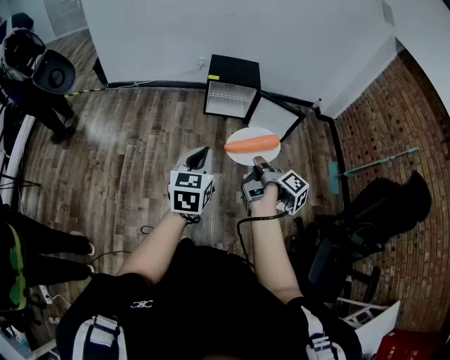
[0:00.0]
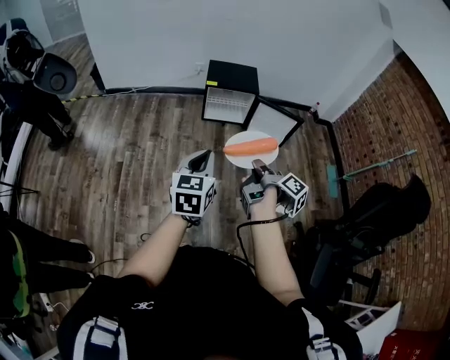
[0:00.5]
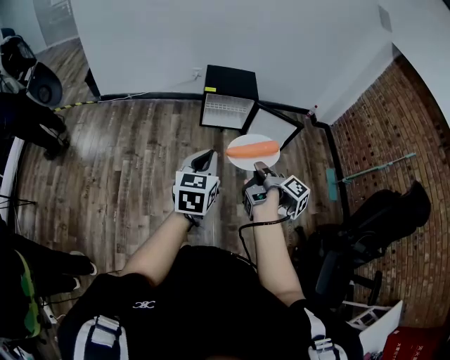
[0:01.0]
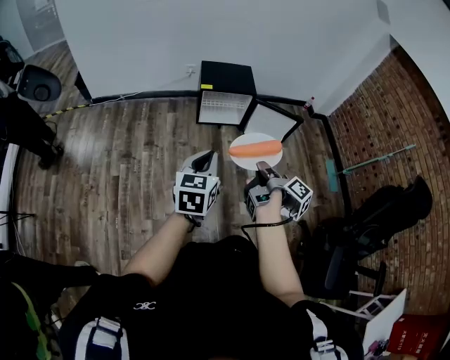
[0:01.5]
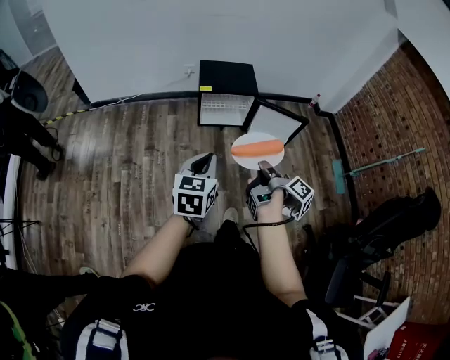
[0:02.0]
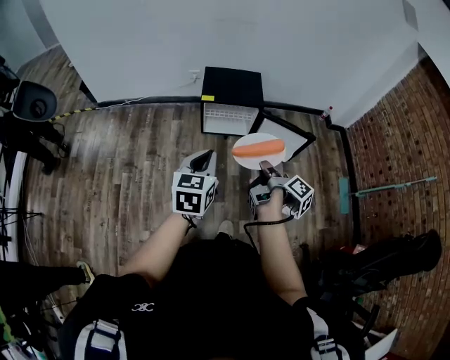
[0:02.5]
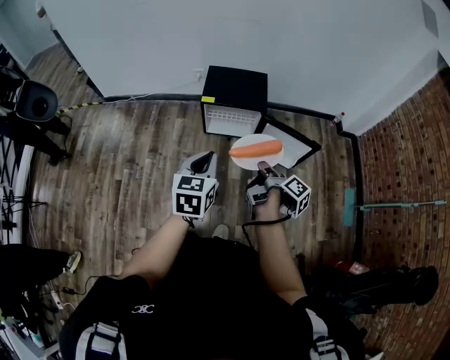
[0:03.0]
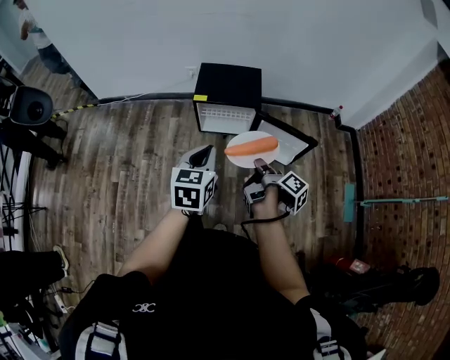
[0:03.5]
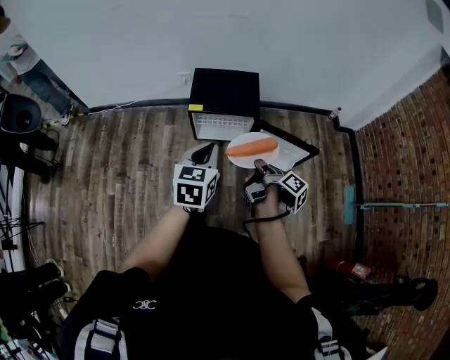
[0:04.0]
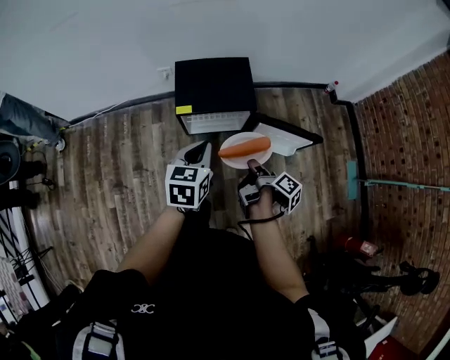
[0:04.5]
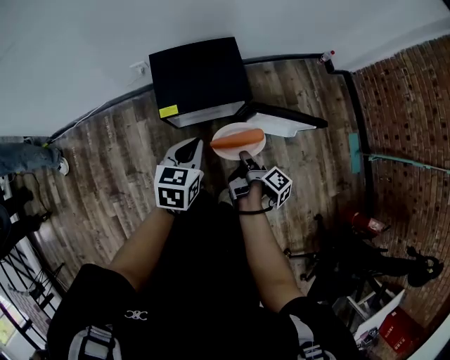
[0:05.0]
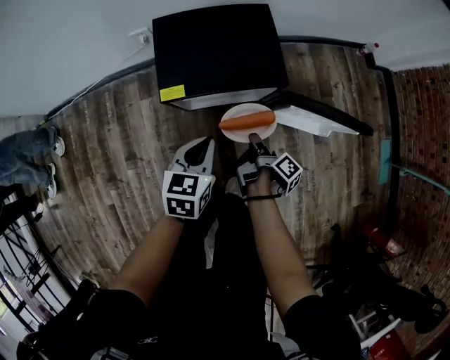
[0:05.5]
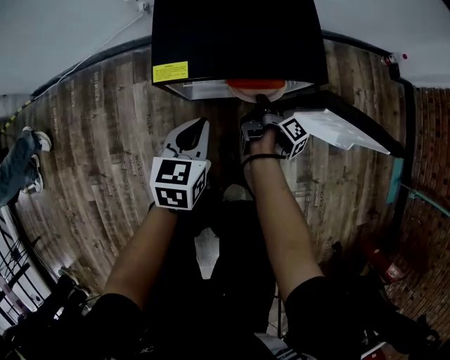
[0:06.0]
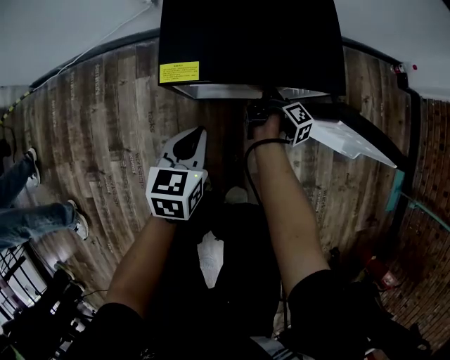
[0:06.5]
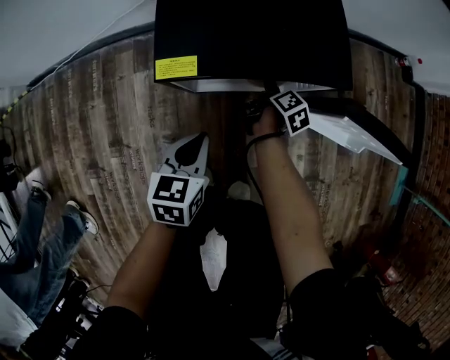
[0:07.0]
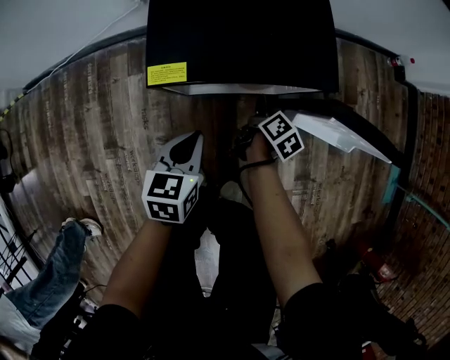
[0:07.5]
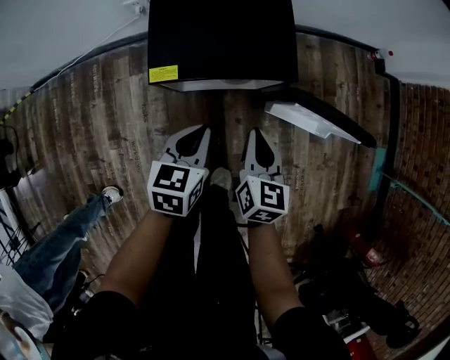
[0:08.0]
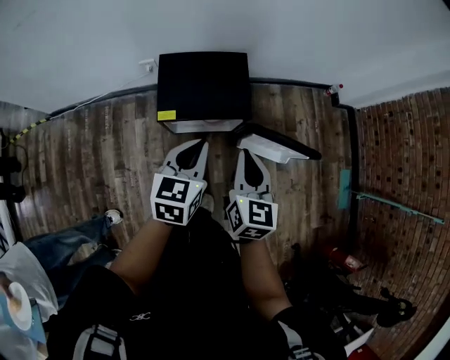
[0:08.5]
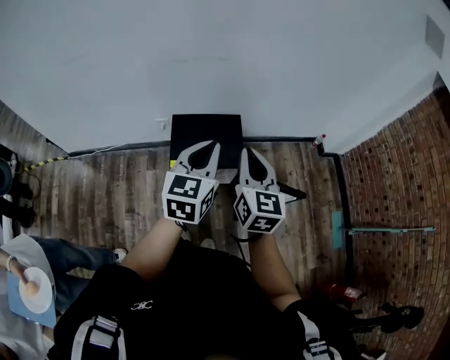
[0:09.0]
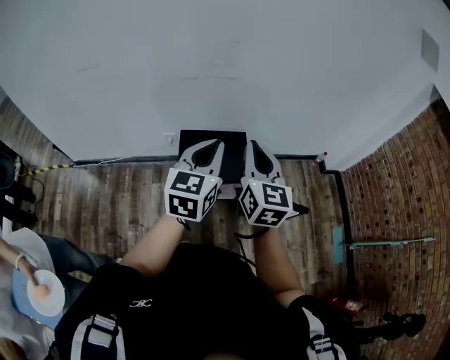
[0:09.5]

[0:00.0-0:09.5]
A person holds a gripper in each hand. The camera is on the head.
0:00.0 to 0:02.0: The left gripper changes place by about 20 cm.
0:02.0 to 0:04.0: The left gripper changes place by some 35 cm.
0:04.0 to 0:05.5: The left gripper goes roughly 35 cm downward.
0:05.5 to 0:07.5: The left gripper moves downward, roughly 15 cm.
0:07.5 to 0:09.5: The left gripper goes roughly 70 cm upward, and angles its fingers upward, by some 30 degrees.

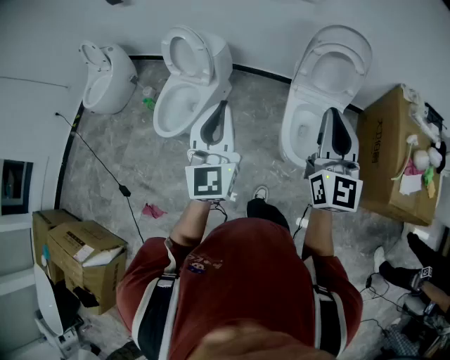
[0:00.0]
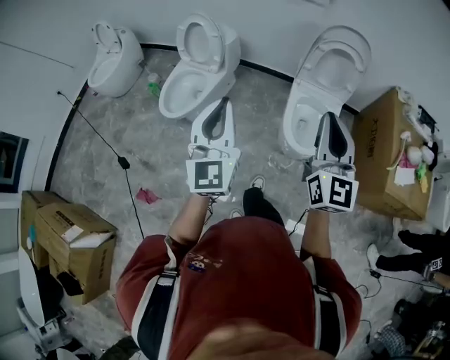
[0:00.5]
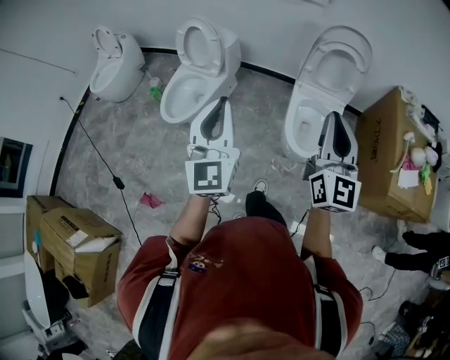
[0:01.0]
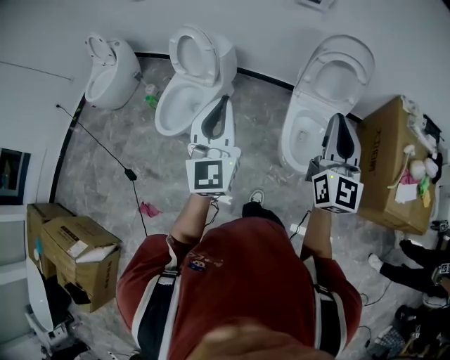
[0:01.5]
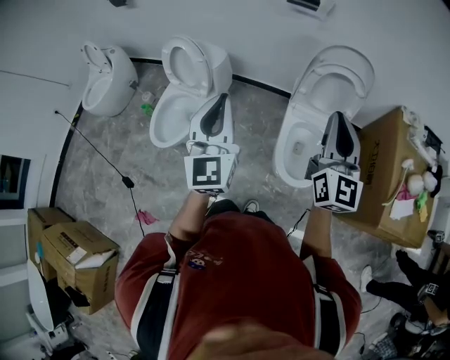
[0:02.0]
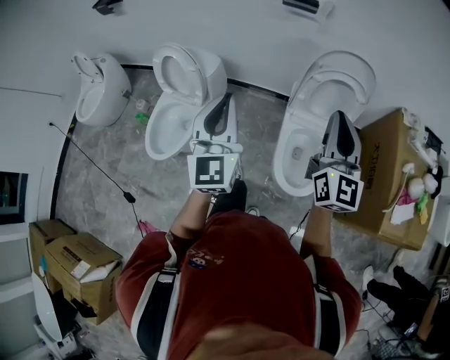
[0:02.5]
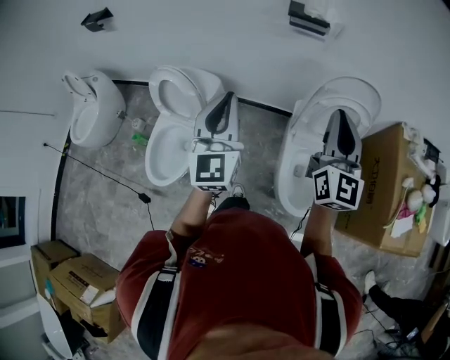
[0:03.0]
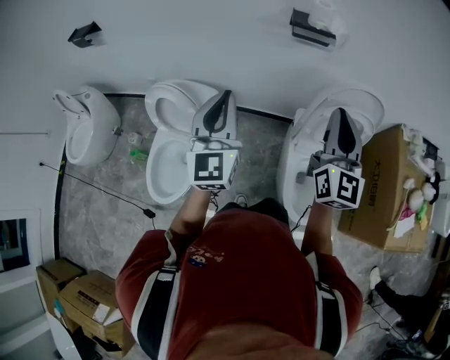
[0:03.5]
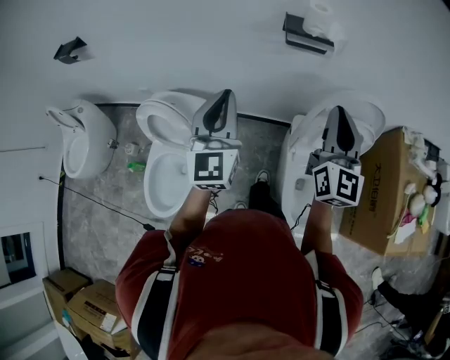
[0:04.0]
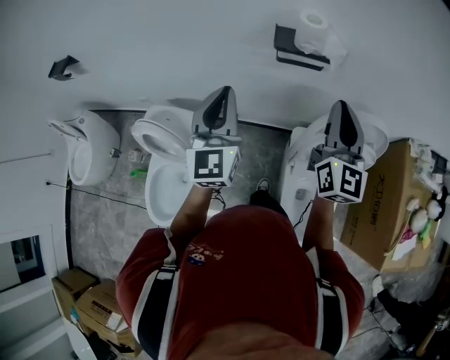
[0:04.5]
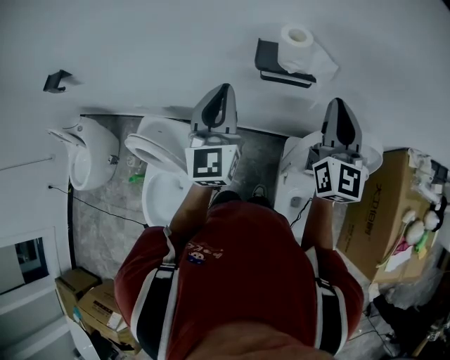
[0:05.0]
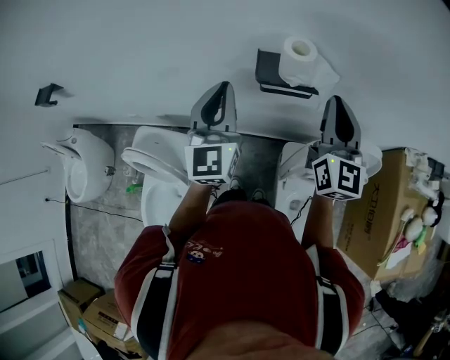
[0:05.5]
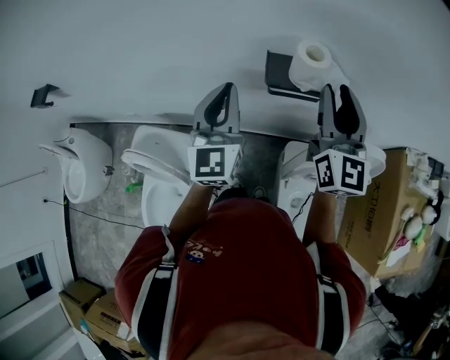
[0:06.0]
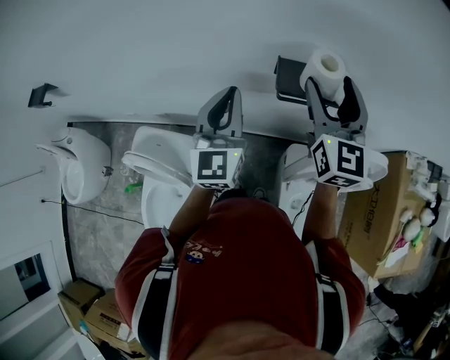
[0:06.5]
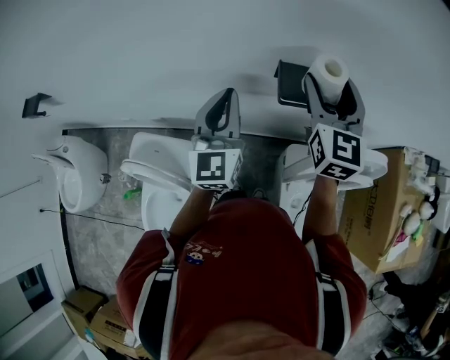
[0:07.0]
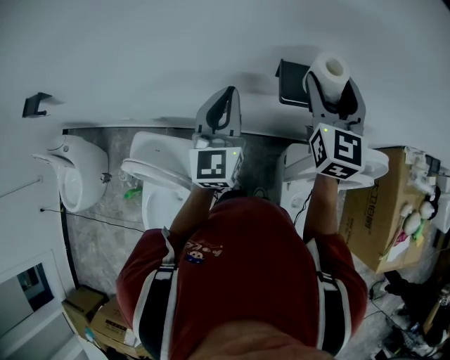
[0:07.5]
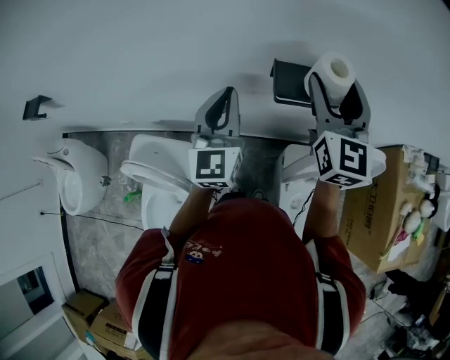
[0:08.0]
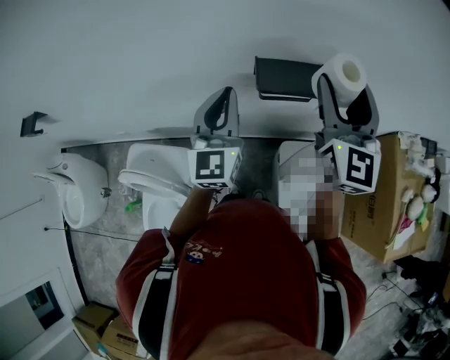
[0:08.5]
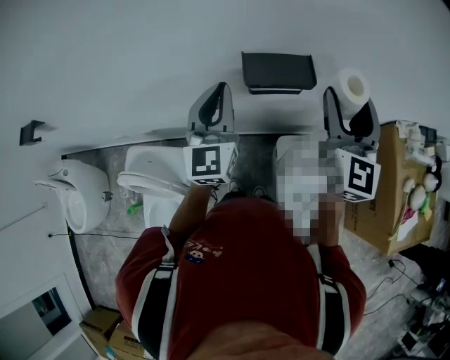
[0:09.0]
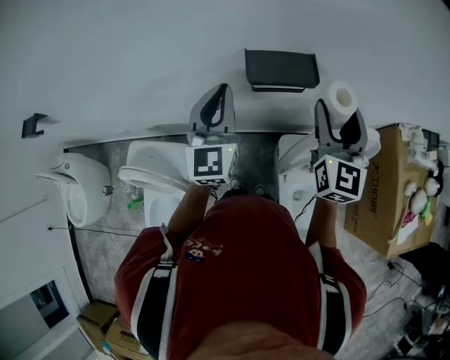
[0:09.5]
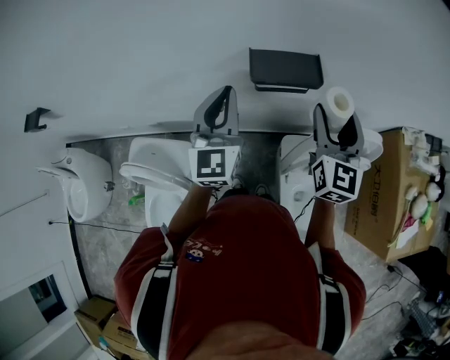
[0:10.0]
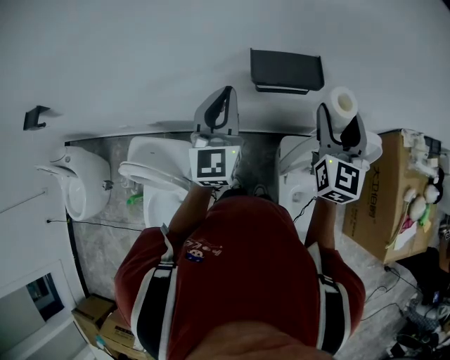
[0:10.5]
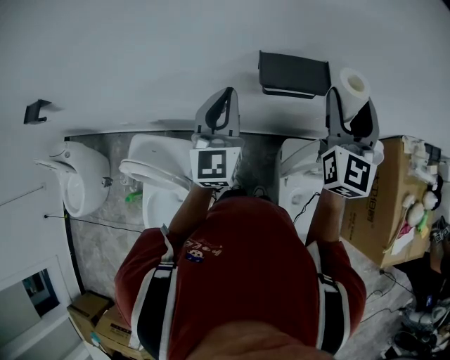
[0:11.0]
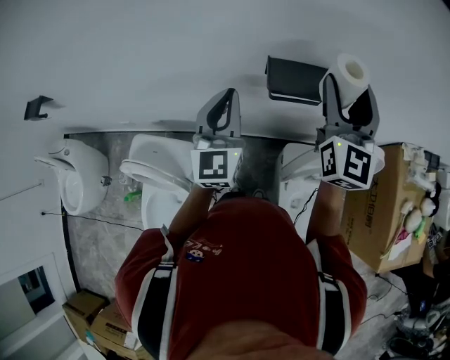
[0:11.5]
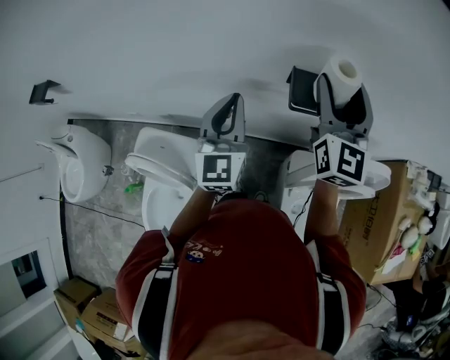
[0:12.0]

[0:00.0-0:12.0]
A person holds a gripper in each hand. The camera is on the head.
0:00.0 to 0:02.0: The grippers both shift forward by about 10 cm.
0:02.0 to 0:04.0: The two grippers travel together, forward, some 40 cm.
0:04.0 to 0:06.0: Both grippers travel together forward, about 30 cm. The right gripper opens its fingers.
0:06.0 to 0:08.0: The right gripper changes place by some 5 cm, and opens its fingers.
0:08.0 to 0:10.0: The right gripper moves to the right, downward and backward, some 15 cm. The left gripper travels to the right by approximately 5 cm.
0:10.0 to 0:12.0: The right gripper is displaced to the left, forward and upward by roughly 15 cm, while the left gripper moves to the left, roughly 10 cm.

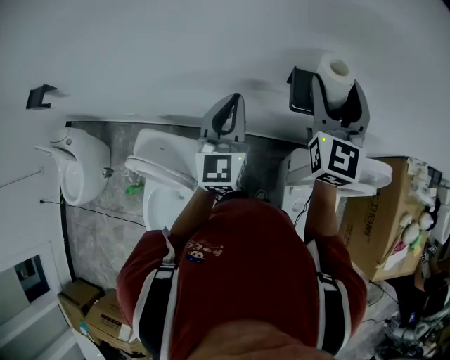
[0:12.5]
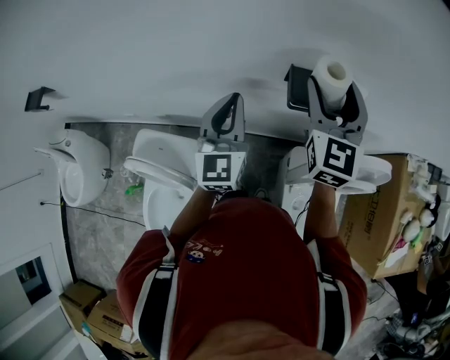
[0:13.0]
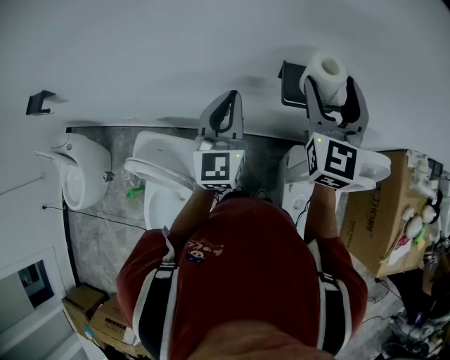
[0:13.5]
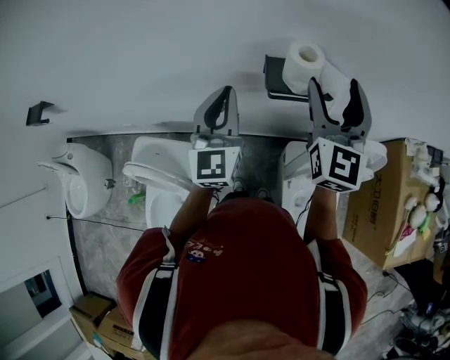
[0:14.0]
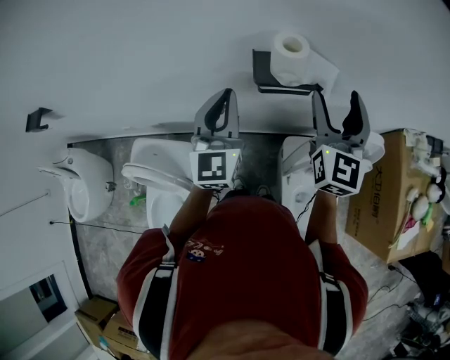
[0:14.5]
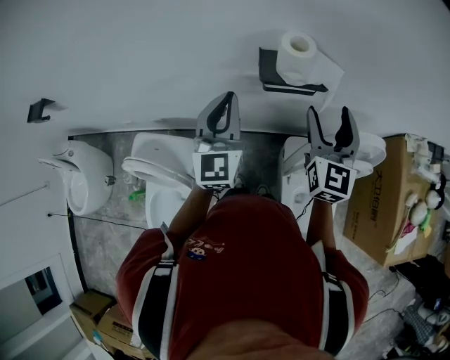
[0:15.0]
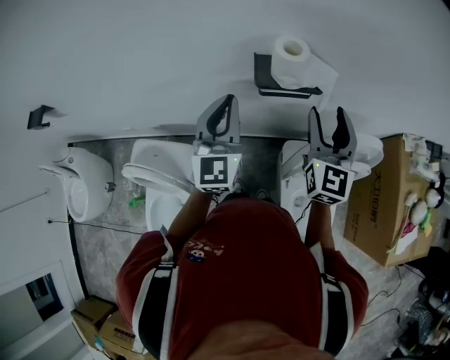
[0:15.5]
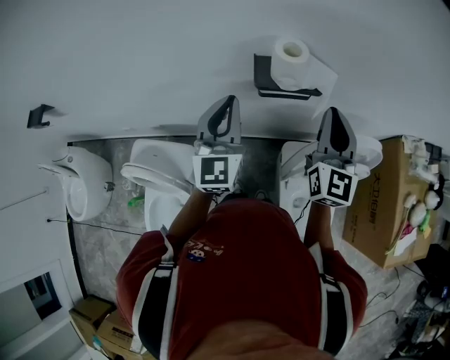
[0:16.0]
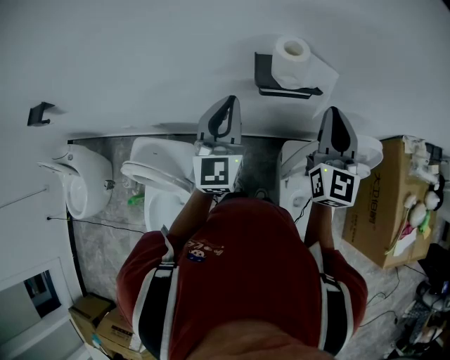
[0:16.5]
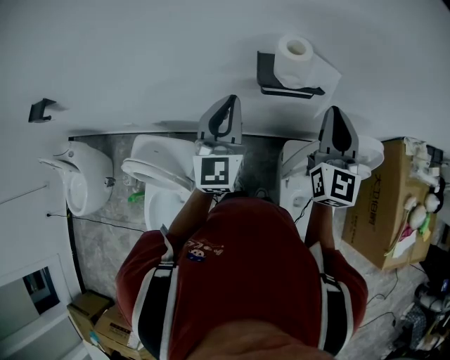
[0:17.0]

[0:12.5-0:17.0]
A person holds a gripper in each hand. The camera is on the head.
0:12.5 to 0:14.5: The right gripper is displaced to the right and backward by about 15 cm; the left gripper heads to the right, covering approximately 10 cm.
0:14.5 to 0:17.0: The right gripper closes.

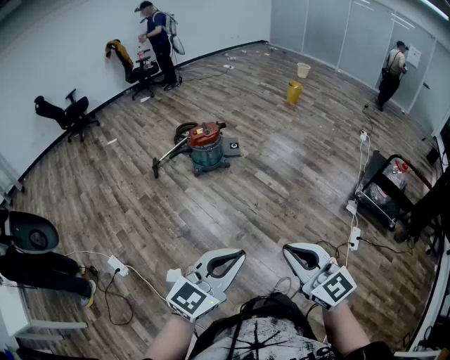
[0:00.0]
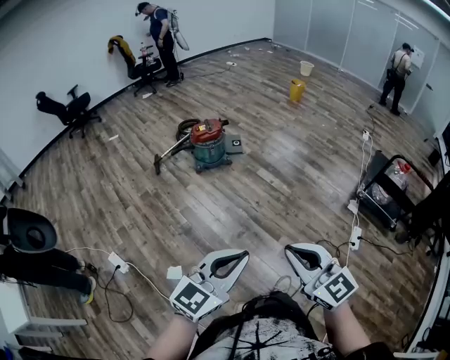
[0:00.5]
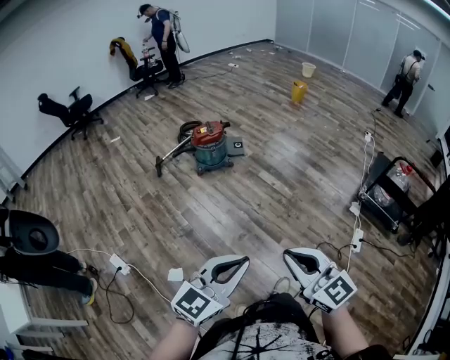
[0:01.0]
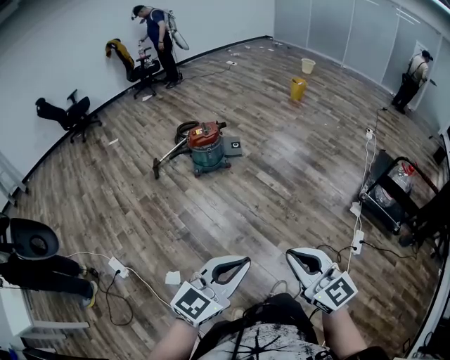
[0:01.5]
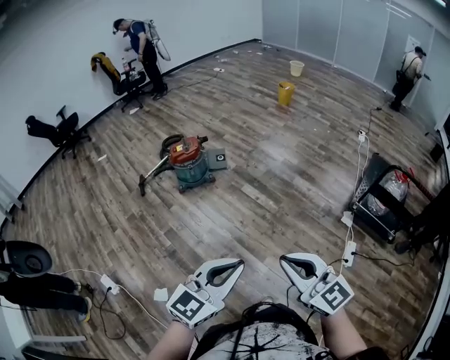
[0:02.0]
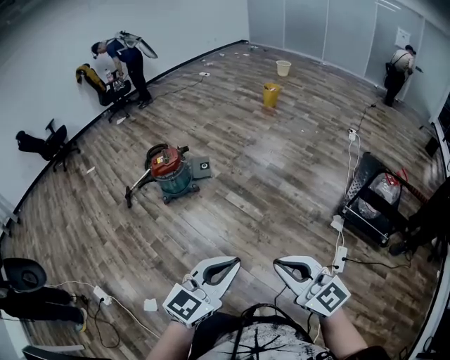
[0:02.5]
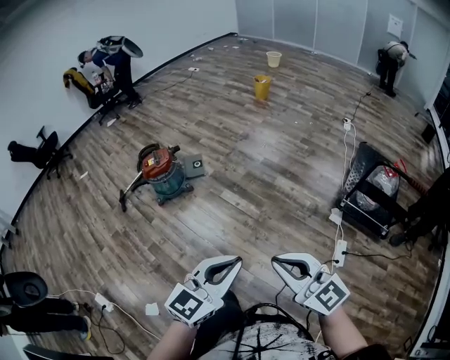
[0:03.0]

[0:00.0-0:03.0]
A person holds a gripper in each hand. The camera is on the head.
0:00.0 to 0:01.5: The left gripper changes place by approximately 5 cm. Meanwhile the right gripper changes place by about 5 cm.
0:01.5 to 0:03.0: Both grippers travel together to the right and forward, roughly 30 cm.
